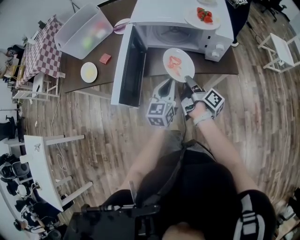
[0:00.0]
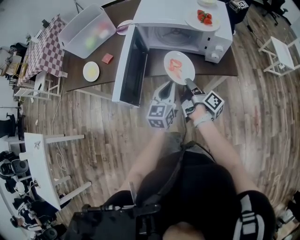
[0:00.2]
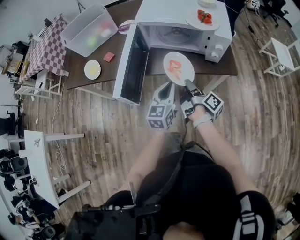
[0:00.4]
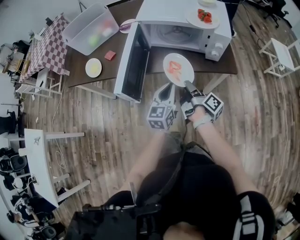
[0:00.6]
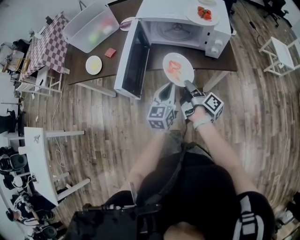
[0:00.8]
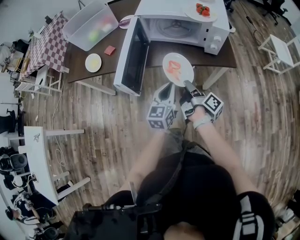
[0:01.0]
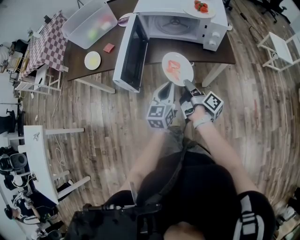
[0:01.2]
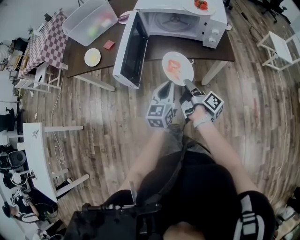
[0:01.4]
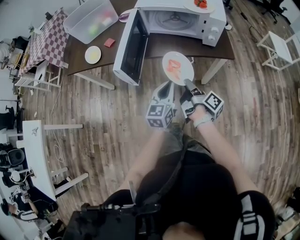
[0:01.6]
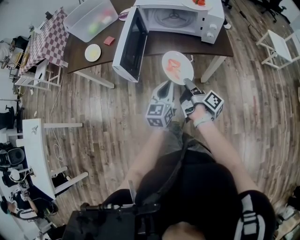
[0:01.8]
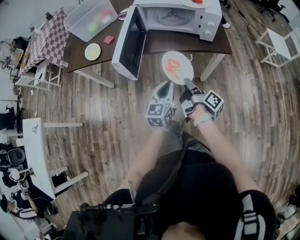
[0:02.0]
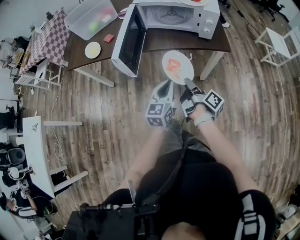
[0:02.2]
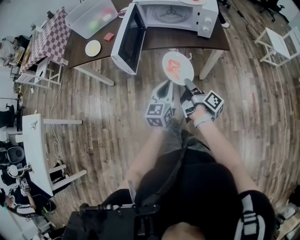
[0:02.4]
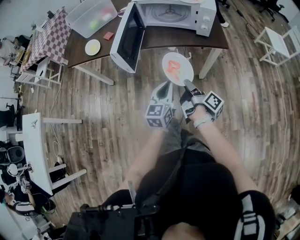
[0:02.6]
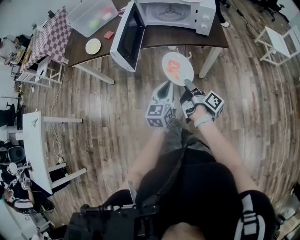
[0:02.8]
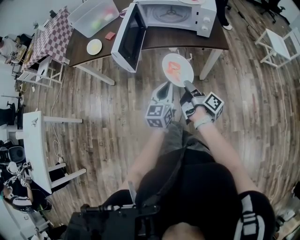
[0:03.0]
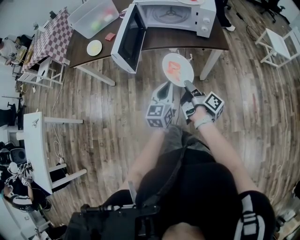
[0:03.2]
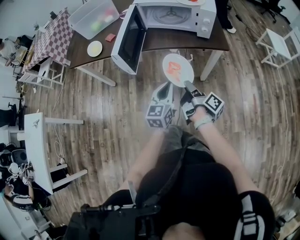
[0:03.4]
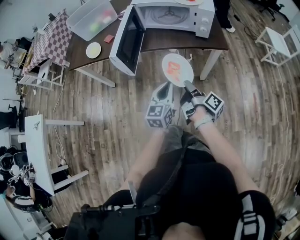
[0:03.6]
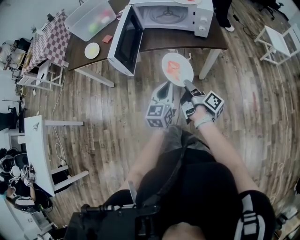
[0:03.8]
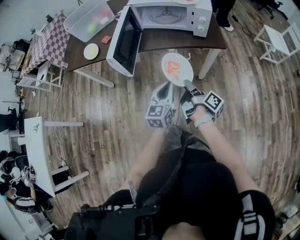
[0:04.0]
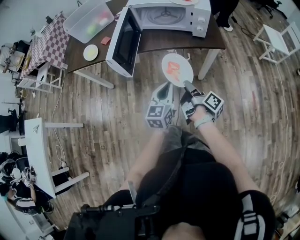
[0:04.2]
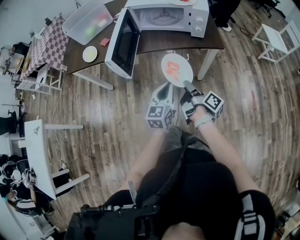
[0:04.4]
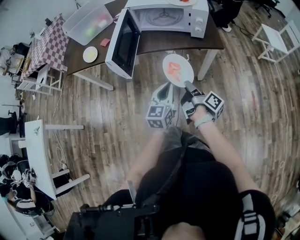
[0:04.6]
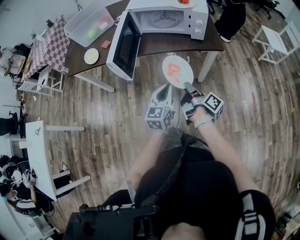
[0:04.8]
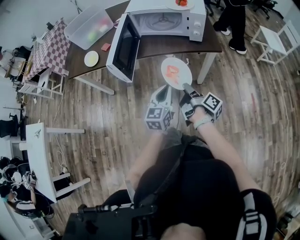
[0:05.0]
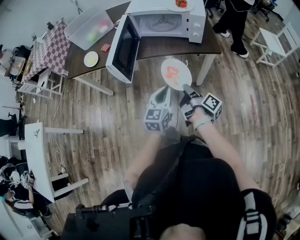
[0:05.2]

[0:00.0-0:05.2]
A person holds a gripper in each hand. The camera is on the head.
0:00.0 to 0:01.8: The left gripper moves approximately 15 cm.
0:01.8 to 0:03.4: The left gripper ends up approximately 5 cm from where it was.

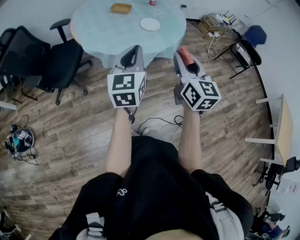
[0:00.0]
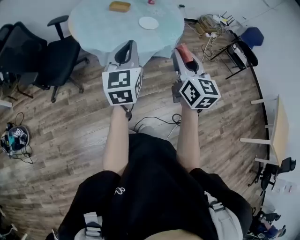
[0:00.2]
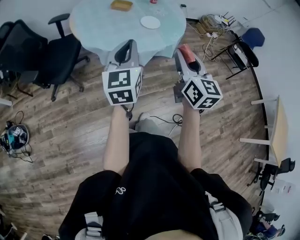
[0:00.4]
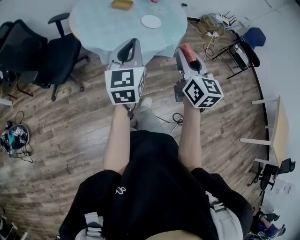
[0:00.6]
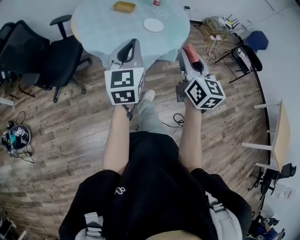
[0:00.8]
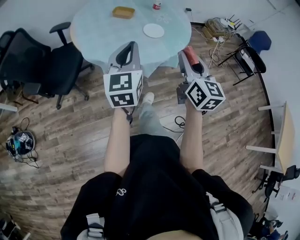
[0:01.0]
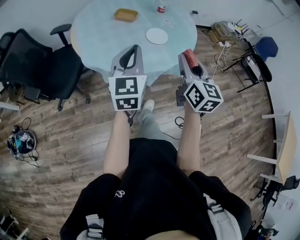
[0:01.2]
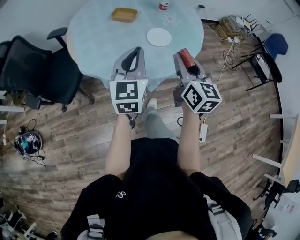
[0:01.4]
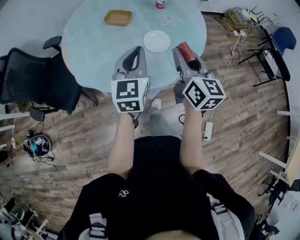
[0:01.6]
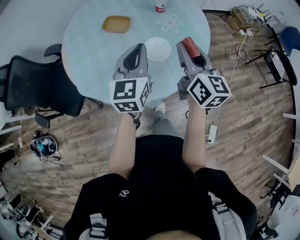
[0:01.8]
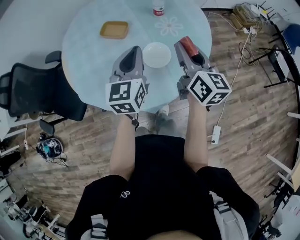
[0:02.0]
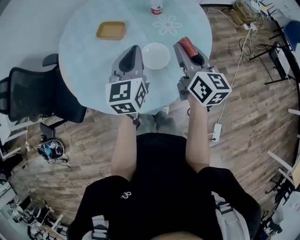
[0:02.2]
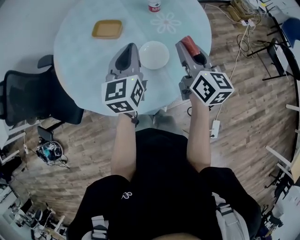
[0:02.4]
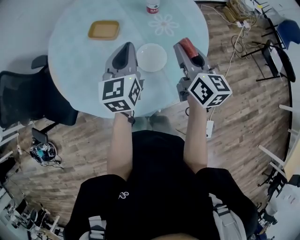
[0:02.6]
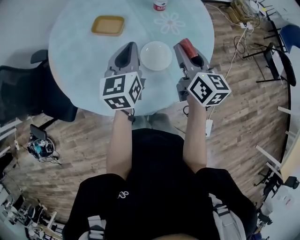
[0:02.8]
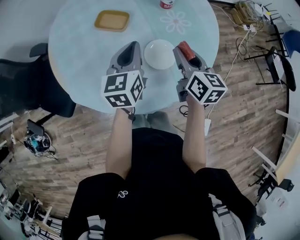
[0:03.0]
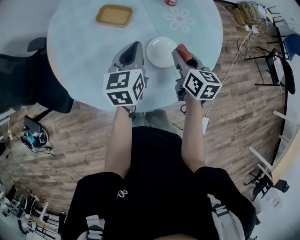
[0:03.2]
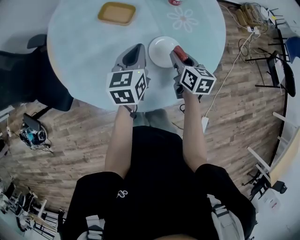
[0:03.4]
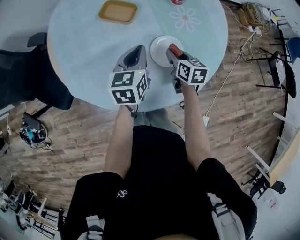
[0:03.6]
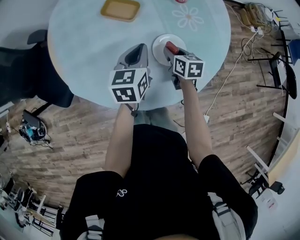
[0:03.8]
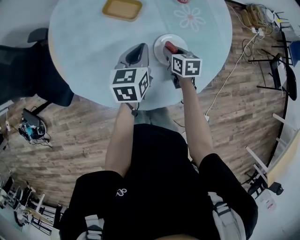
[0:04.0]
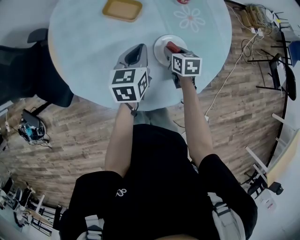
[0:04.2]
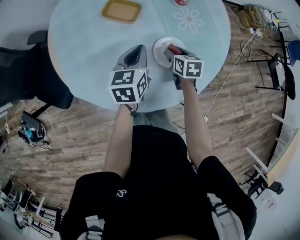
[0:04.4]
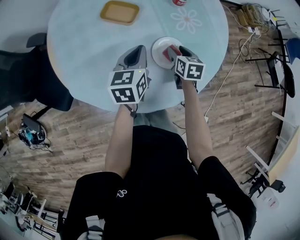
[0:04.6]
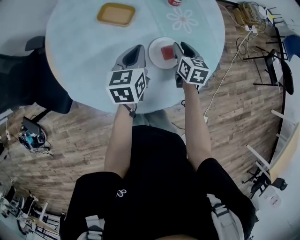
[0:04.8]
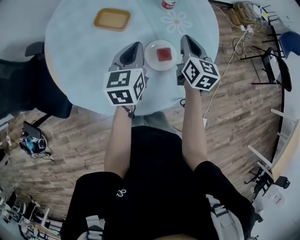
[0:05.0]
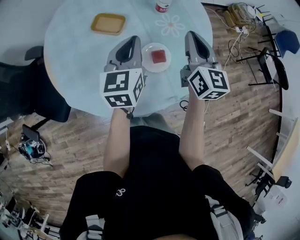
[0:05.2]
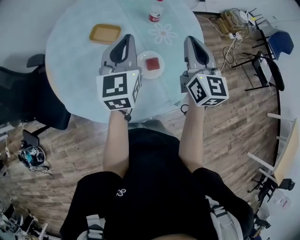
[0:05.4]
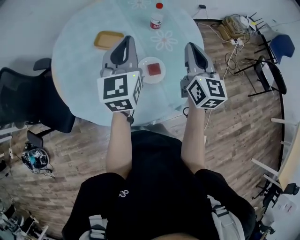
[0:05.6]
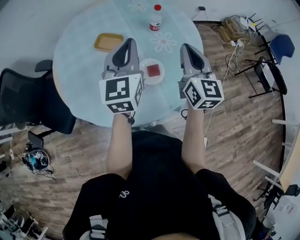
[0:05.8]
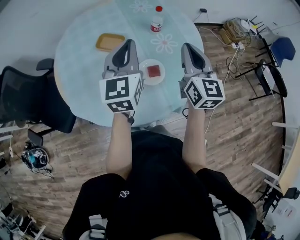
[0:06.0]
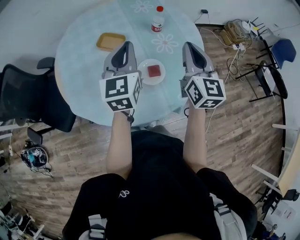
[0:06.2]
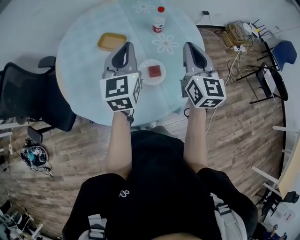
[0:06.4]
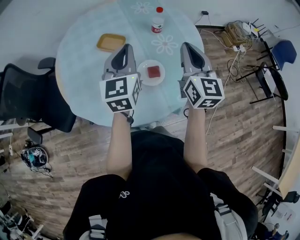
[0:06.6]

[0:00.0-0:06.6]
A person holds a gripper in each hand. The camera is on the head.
0:00.0 to 0:01.6: The two grippers go approximately 35 cm forward.
0:01.6 to 0:03.2: The grippers both shift forward and downward by some 25 cm. The right gripper turns by roughly 20 degrees; the left gripper changes its angle by some 20 degrees.
0:03.2 to 0:05.0: The right gripper is displaced forward by about 5 cm, reaches roughly 15 cm downward, then returns, and closes its fingers.
0:05.0 to 0:06.6: The left gripper travels upward by roughly 15 cm, and rotates some 20 degrees, while the right gripper travels upward and backward by some 20 cm, and swivels approximately 20 degrees.

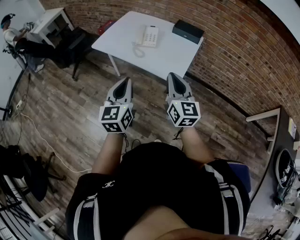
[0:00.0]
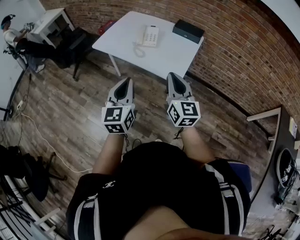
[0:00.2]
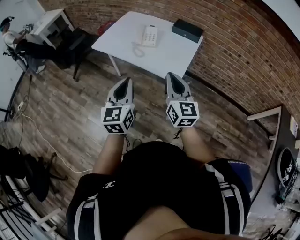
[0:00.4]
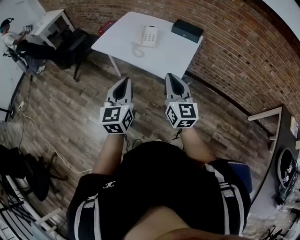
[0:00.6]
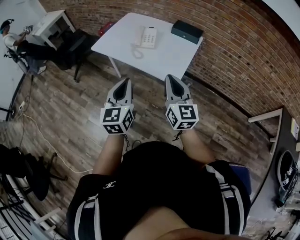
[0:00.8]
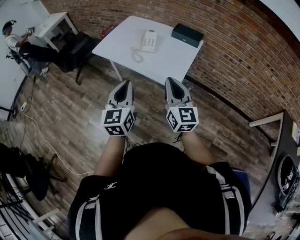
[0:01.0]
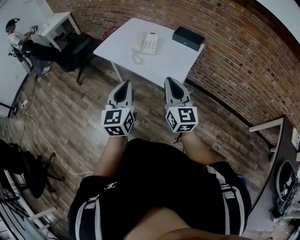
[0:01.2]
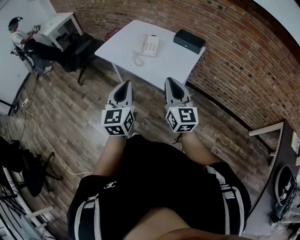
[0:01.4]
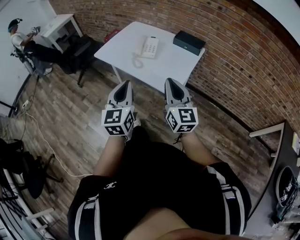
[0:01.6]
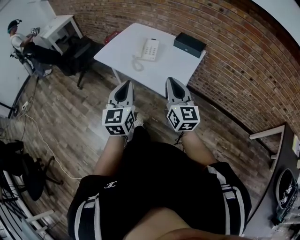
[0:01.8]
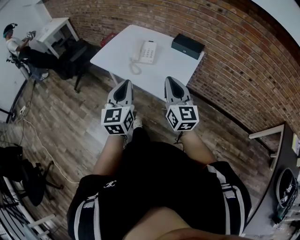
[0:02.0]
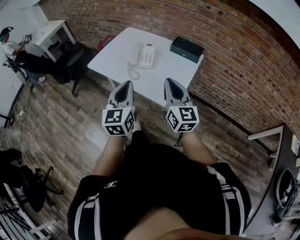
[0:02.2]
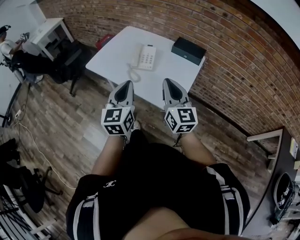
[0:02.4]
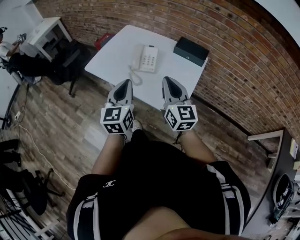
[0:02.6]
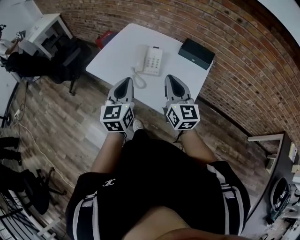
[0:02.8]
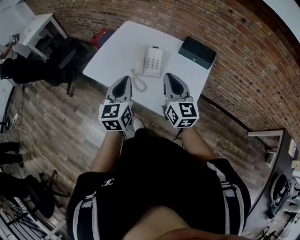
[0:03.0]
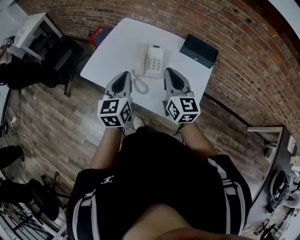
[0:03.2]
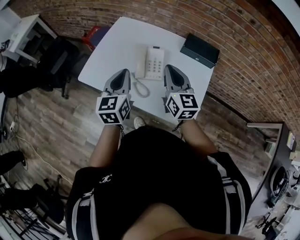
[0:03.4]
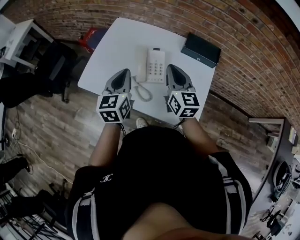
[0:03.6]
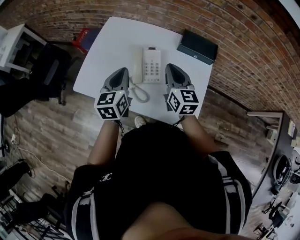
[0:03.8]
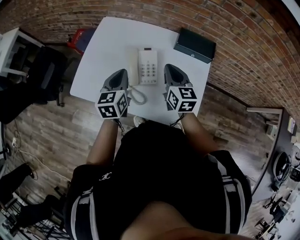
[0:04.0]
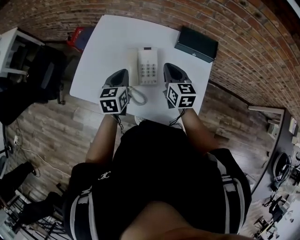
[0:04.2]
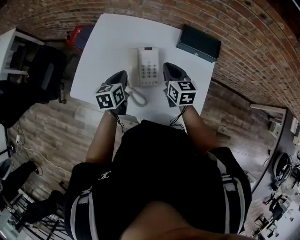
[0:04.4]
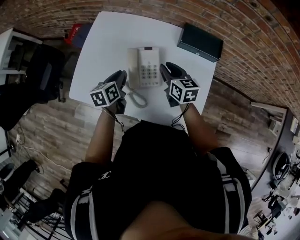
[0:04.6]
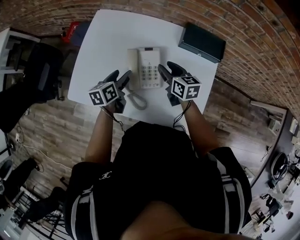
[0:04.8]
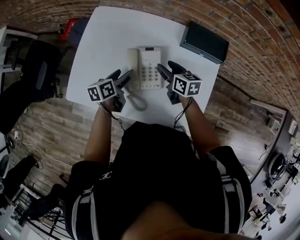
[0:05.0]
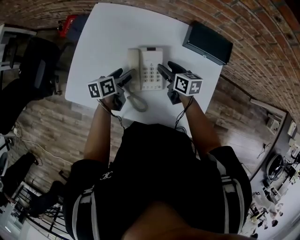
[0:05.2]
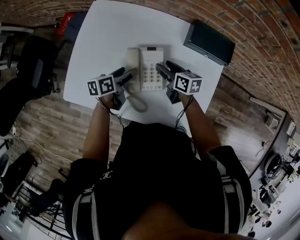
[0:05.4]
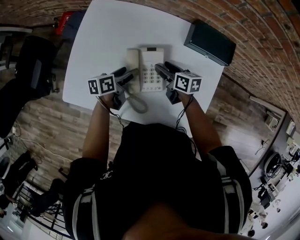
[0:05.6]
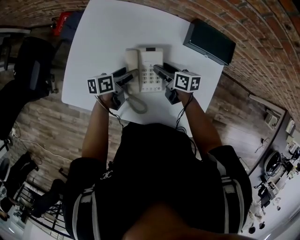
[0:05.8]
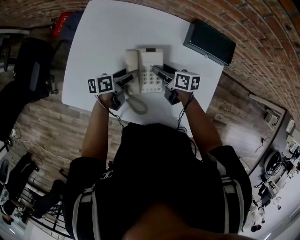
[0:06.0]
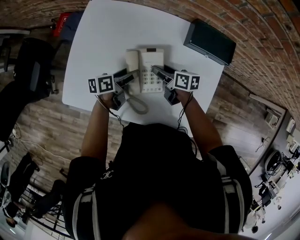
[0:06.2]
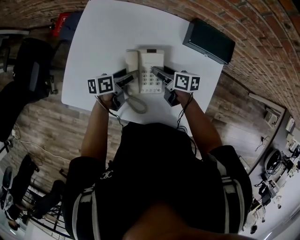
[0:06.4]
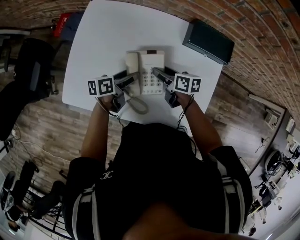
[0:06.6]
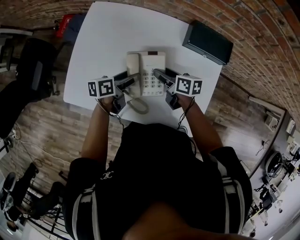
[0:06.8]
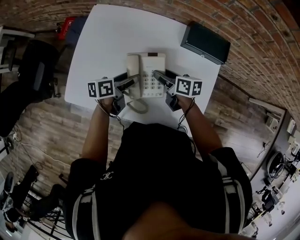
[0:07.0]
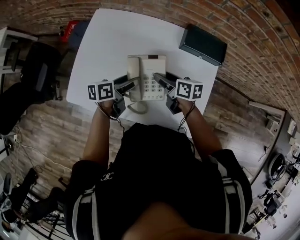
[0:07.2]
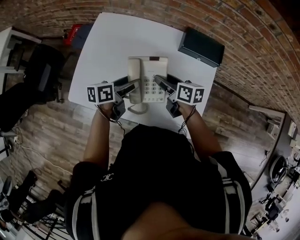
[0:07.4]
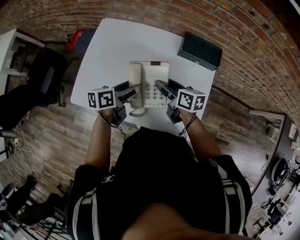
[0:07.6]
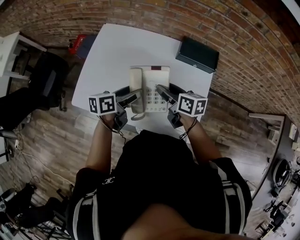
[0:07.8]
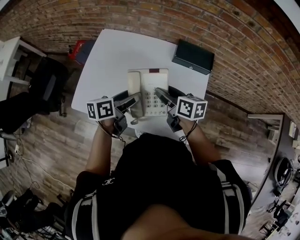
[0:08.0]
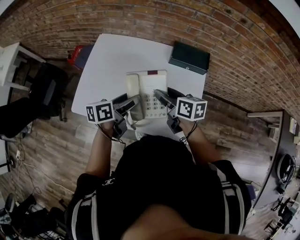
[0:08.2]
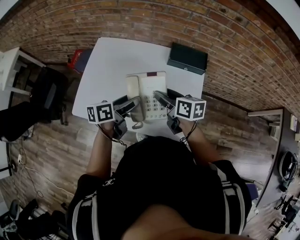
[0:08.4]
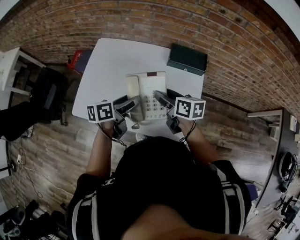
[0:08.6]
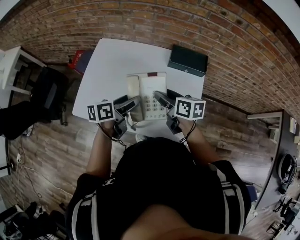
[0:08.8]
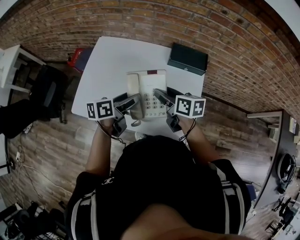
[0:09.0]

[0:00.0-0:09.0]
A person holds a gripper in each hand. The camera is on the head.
0:00.0 to 0:01.6: The grippers both shift to the right by roughly 5 cm.
0:01.6 to 0:03.0: The grippers both shift forward by approximately 30 cm.
0:03.0 to 0:04.4: The two grippers go about 30 cm forward and downward. The right gripper turns by approximately 30 degrees. Meanwhile the left gripper swivels roughly 30 degrees.
0:04.4 to 0:06.0: The right gripper heads downward, covering some 15 cm, changes its angle by roughly 40 degrees, and opens its fingers. The left gripper heads downward and forward, covering roughly 15 cm, swivels some 40 degrees, and opens up.
0:06.0 to 0:07.6: Both grippers move upward and backward, about 15 cm.
0:07.6 to 0:09.0: Both grippers travel together upward, about 5 cm.

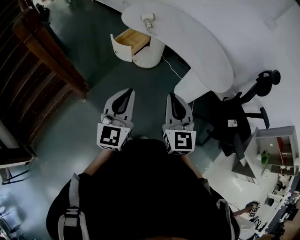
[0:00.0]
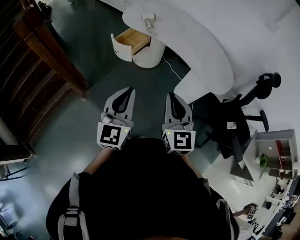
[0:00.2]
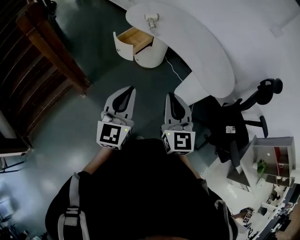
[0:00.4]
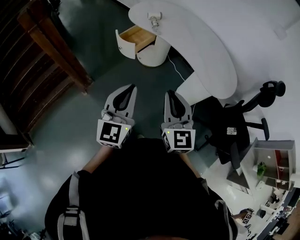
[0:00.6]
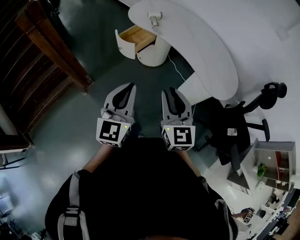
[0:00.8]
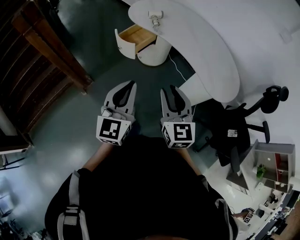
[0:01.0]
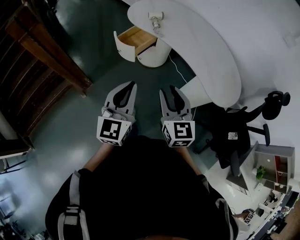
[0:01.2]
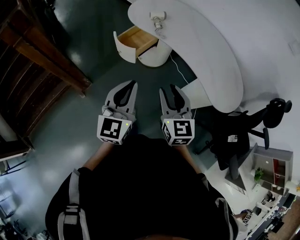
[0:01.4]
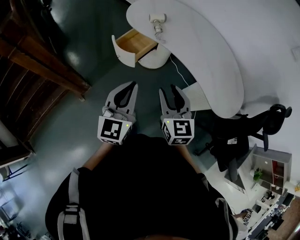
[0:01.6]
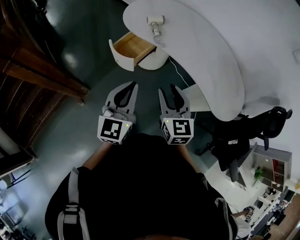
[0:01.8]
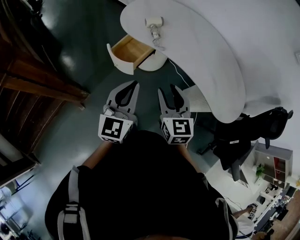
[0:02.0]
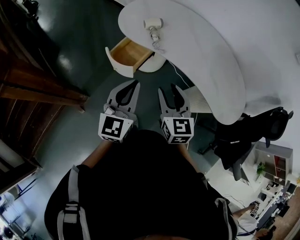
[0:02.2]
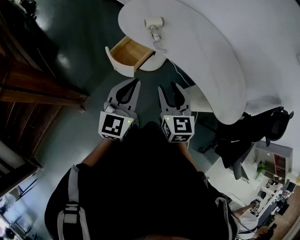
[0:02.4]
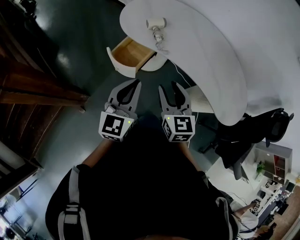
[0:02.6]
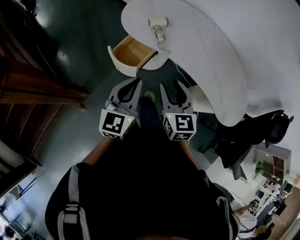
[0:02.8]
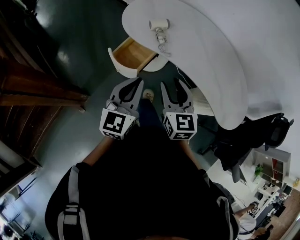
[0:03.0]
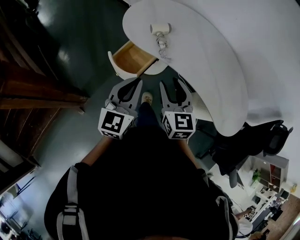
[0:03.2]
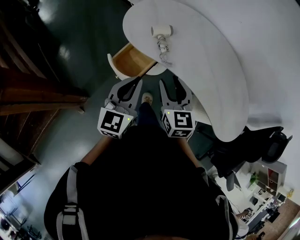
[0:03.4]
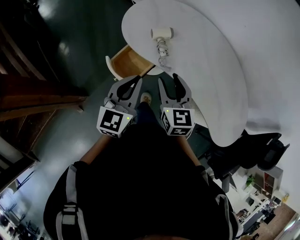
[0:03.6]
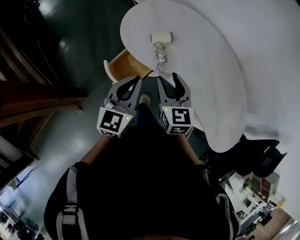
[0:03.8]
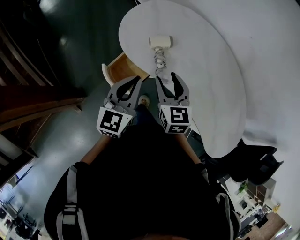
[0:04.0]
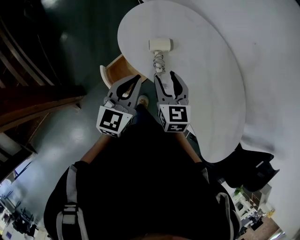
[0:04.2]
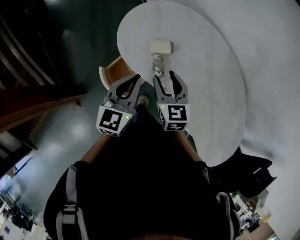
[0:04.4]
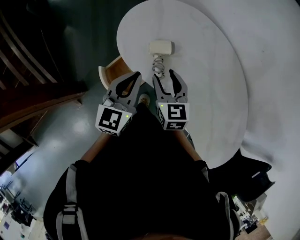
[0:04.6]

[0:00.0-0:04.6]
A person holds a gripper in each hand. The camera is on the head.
0:00.0 to 0:01.6: Both grippers move forward, roughly 20 cm. The right gripper opens its fingers.
0:01.6 to 0:03.0: The grippers both shift forward by roughly 15 cm.
0:03.0 to 0:04.6: The grippers both shift forward by roughly 25 cm.
